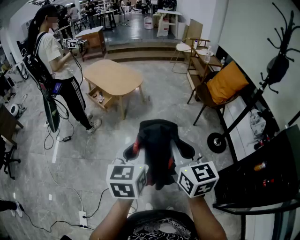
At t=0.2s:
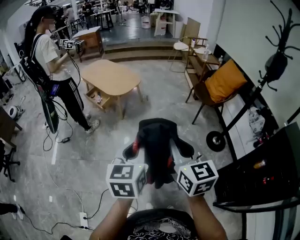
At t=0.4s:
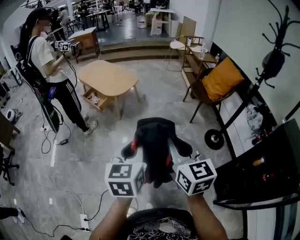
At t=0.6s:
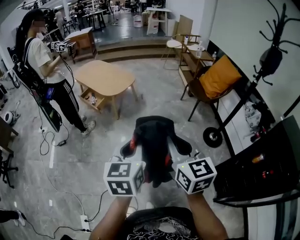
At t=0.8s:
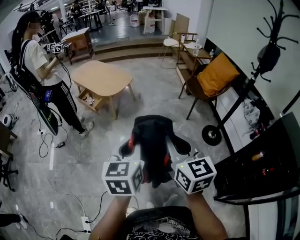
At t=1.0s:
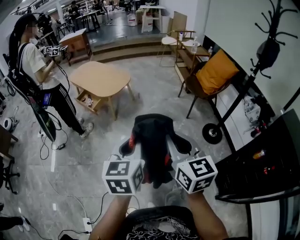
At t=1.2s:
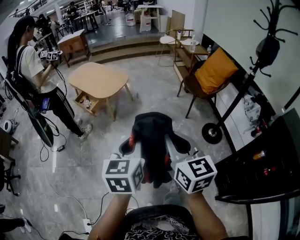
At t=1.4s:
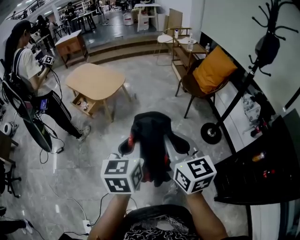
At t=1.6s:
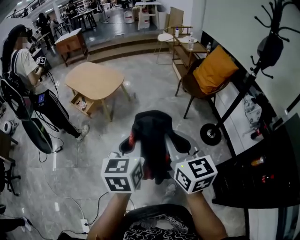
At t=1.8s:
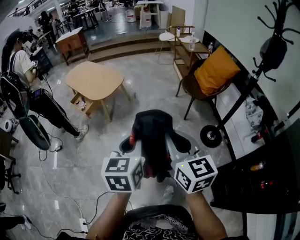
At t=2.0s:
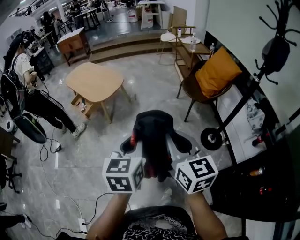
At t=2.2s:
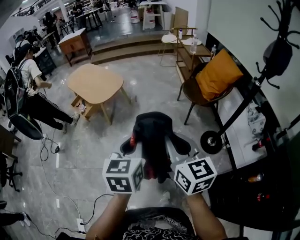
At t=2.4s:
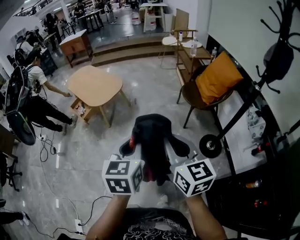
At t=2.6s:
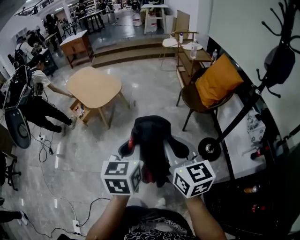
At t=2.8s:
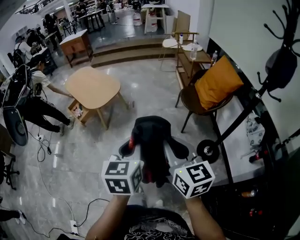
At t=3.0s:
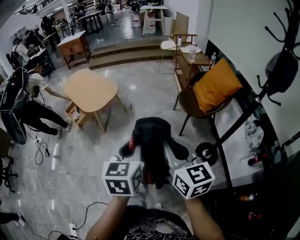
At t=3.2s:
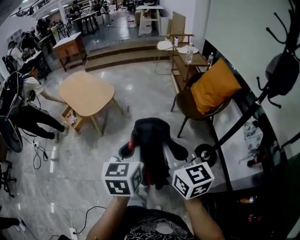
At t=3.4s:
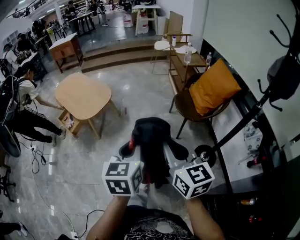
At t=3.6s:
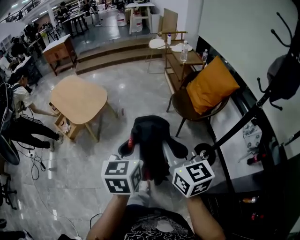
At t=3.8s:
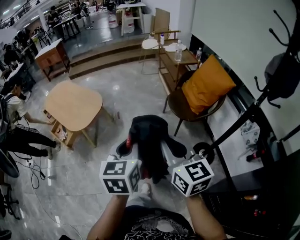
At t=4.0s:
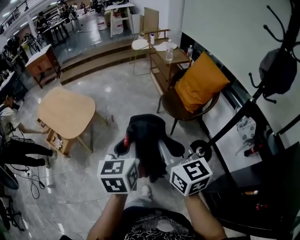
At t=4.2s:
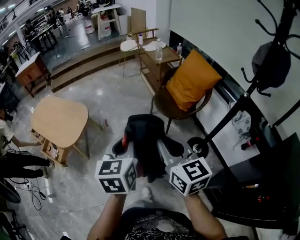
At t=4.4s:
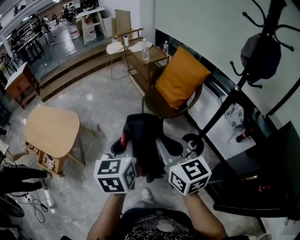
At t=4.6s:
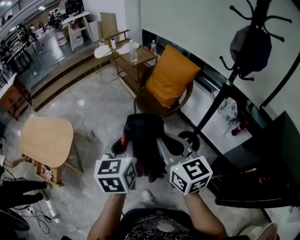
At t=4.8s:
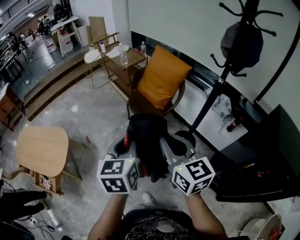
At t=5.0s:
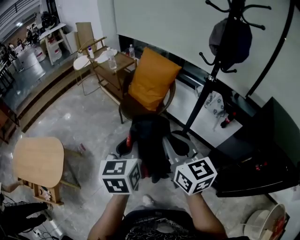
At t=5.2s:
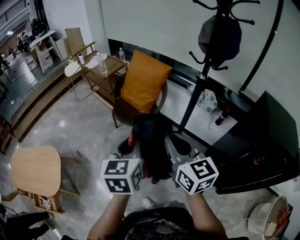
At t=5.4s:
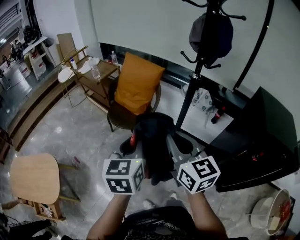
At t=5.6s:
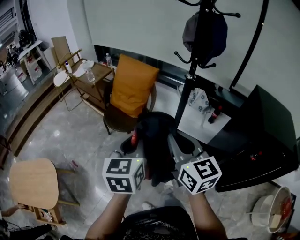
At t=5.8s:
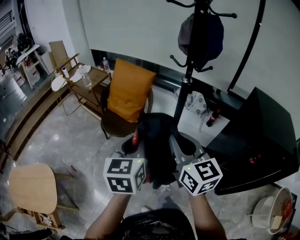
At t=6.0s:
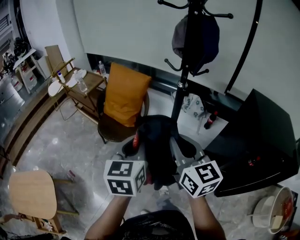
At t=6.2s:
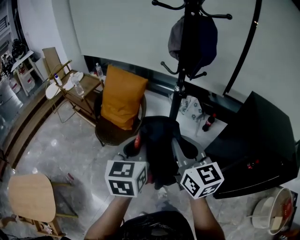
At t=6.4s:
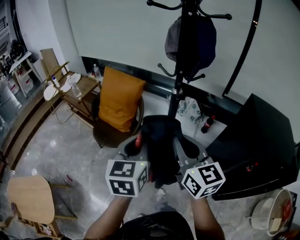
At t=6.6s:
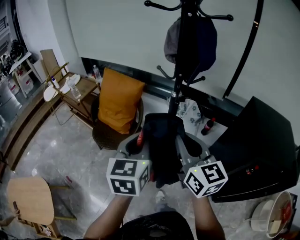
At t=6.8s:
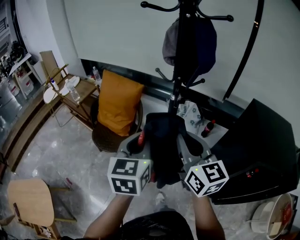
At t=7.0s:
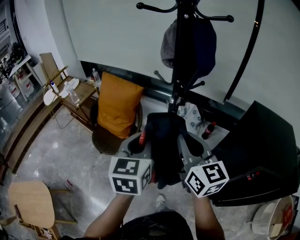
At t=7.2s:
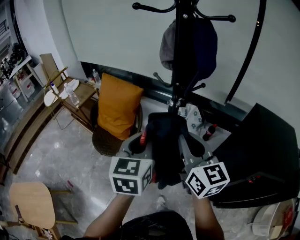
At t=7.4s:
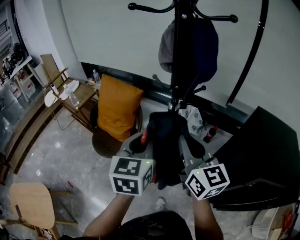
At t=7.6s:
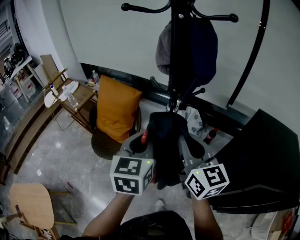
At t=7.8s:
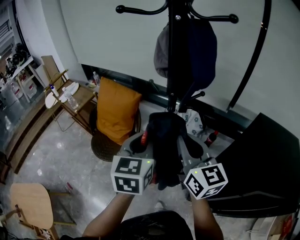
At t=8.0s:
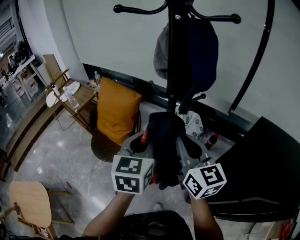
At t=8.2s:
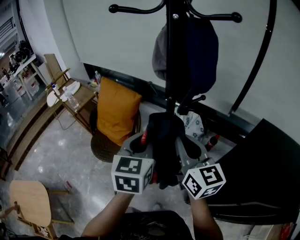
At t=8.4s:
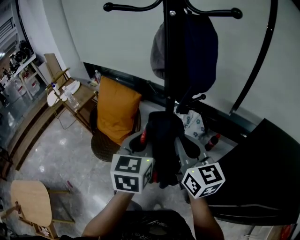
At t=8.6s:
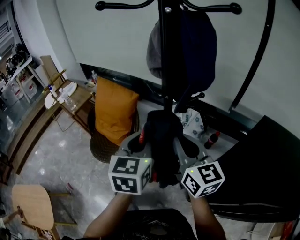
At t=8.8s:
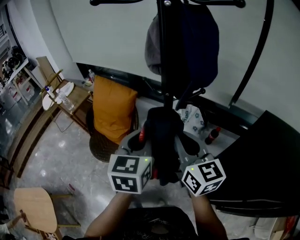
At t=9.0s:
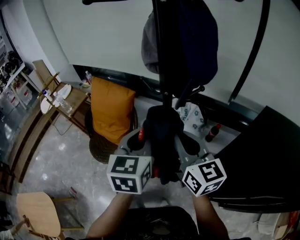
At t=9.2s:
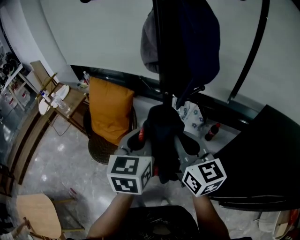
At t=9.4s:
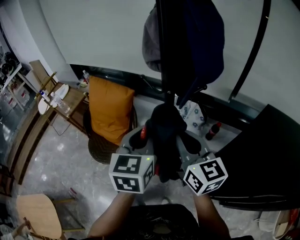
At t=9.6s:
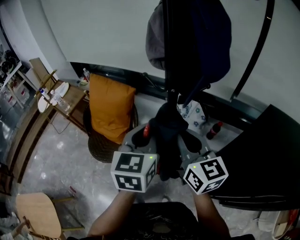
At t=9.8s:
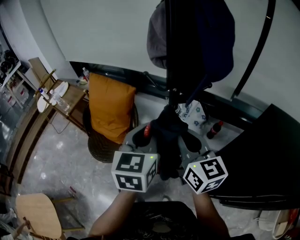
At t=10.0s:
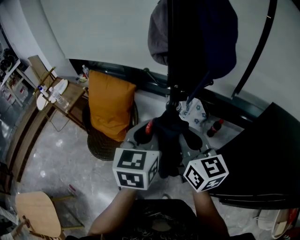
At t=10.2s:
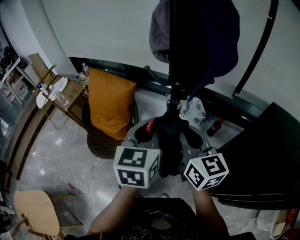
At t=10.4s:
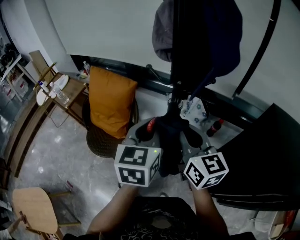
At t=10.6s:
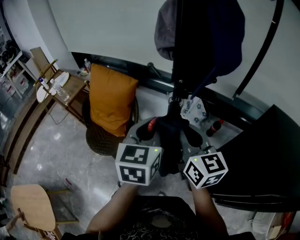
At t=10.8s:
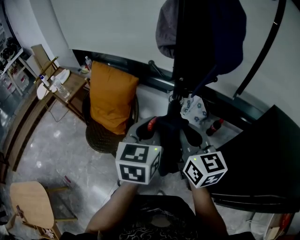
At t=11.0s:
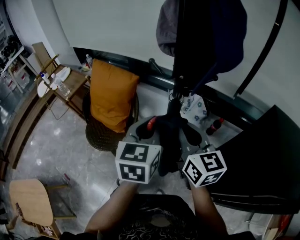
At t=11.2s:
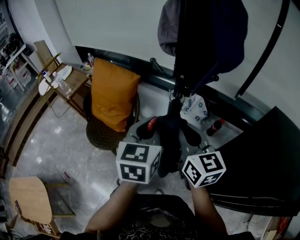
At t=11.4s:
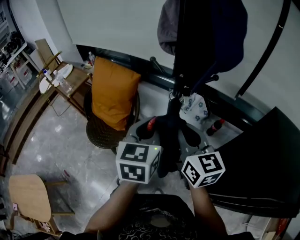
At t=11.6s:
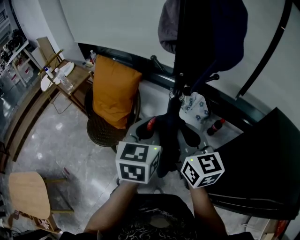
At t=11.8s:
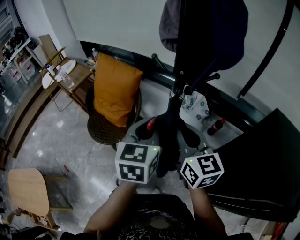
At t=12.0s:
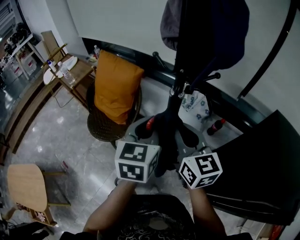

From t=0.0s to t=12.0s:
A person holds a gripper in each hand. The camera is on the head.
From t=0.0s to t=1.6s: The grippers both shift to the right and forward by some 15 cm.
From t=1.6s to t=3.0s: Both grippers travel together to the right and forward, roughly 20 cm.
From t=3.0s to t=4.4s: The grippers both shift forward by roughly 20 cm. The right gripper swivels roughly 20 degrees, while the left gripper swivels some 20 degrees.
From t=4.4s to t=6.0s: The right gripper moves some 25 cm, and rotates approximately 40 degrees, while the left gripper moves approximately 25 cm, and swivels approximately 40 degrees.
From t=6.0s to t=7.6s: Both grippers move forward and to the right, roughly 20 cm.
From t=7.6s to t=9.0s: Both grippers travel together forward, approximately 5 cm.
From t=9.0s to t=12.0s: The grippers make only small movements.

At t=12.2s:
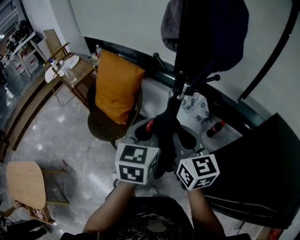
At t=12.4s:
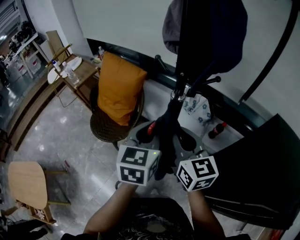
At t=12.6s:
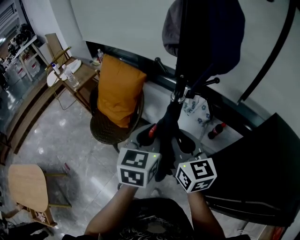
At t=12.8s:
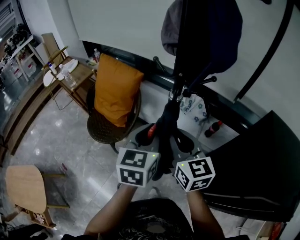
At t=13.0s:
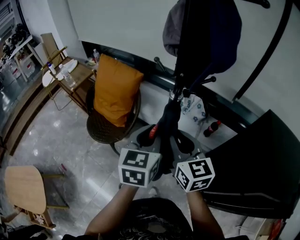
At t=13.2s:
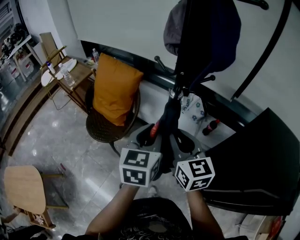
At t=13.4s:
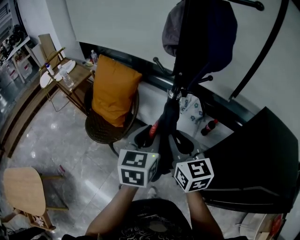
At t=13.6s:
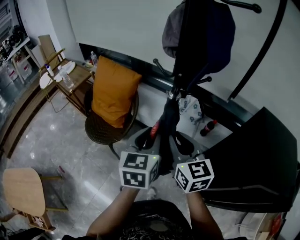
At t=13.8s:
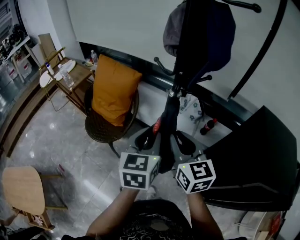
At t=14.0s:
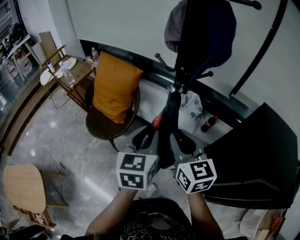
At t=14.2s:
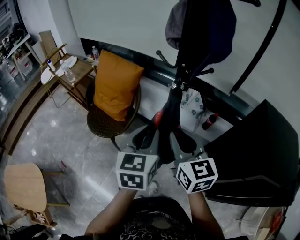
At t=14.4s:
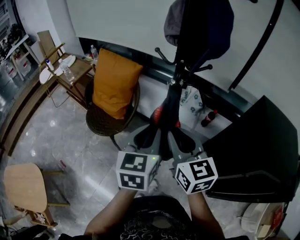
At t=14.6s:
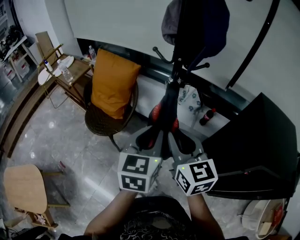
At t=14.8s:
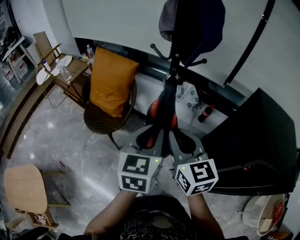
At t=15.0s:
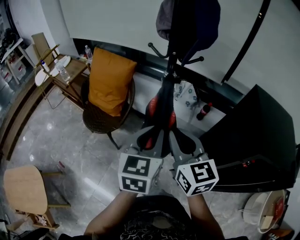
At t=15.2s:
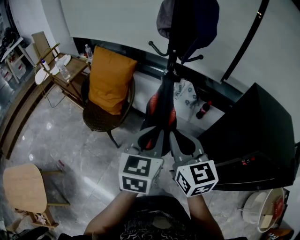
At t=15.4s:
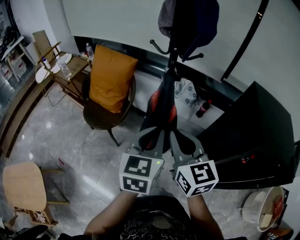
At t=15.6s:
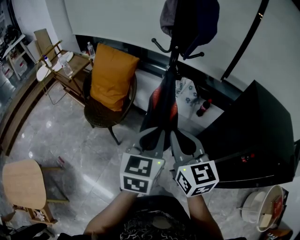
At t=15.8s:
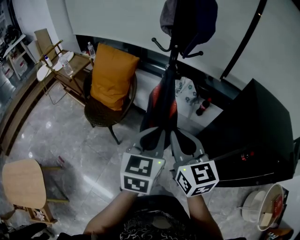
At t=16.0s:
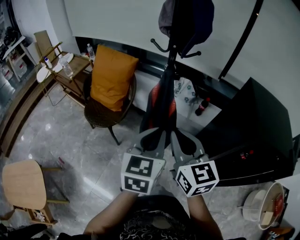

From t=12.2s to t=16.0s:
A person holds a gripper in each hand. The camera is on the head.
From t=12.2s to t=13.4s: The grippers move only a little.
From t=13.4s to t=14.8s: The grippers both shift backward by roughly 10 cm.
From t=14.8s to t=16.0s: Both grippers move backward, some 10 cm.

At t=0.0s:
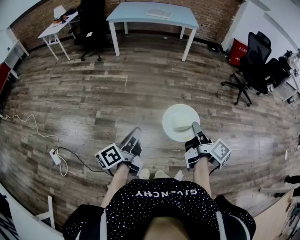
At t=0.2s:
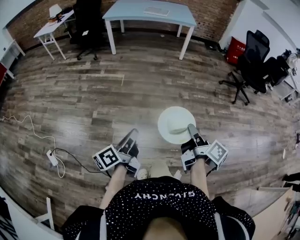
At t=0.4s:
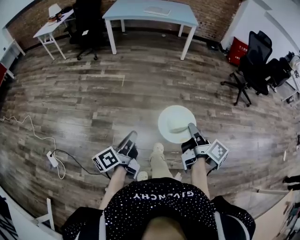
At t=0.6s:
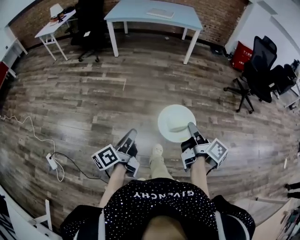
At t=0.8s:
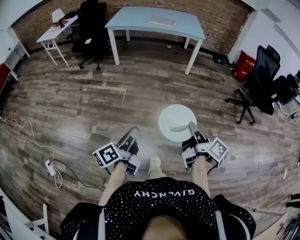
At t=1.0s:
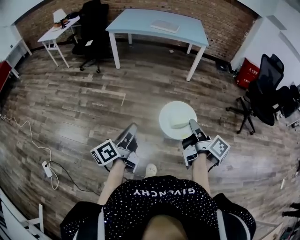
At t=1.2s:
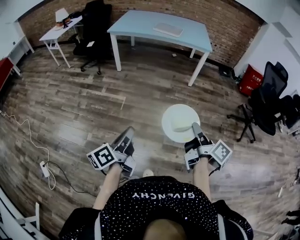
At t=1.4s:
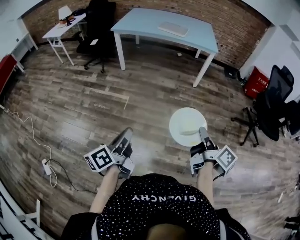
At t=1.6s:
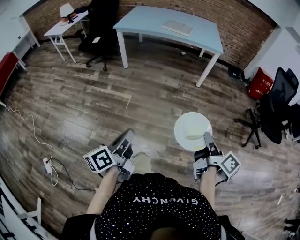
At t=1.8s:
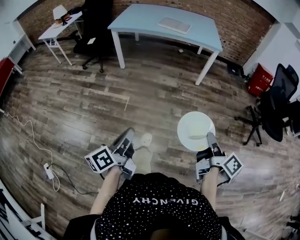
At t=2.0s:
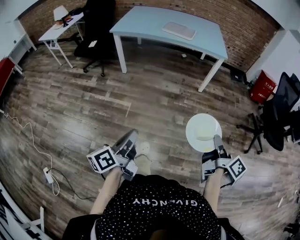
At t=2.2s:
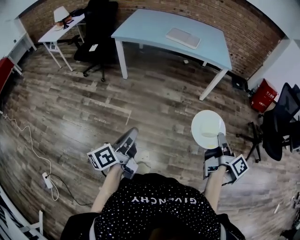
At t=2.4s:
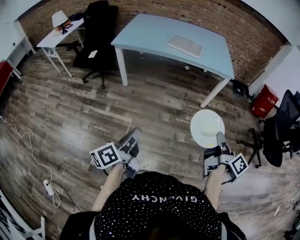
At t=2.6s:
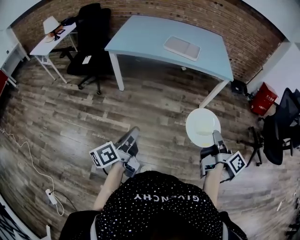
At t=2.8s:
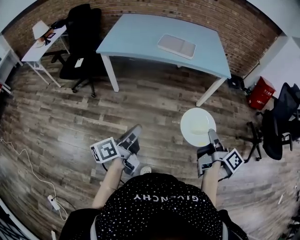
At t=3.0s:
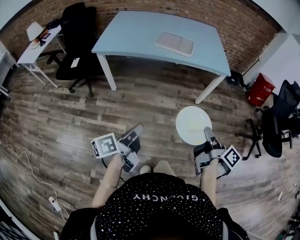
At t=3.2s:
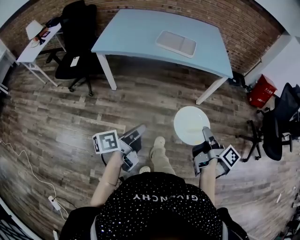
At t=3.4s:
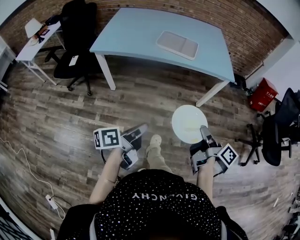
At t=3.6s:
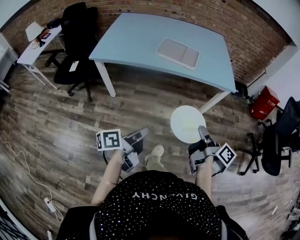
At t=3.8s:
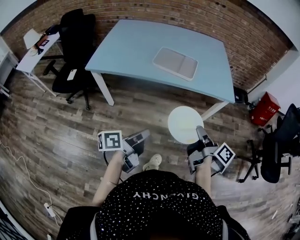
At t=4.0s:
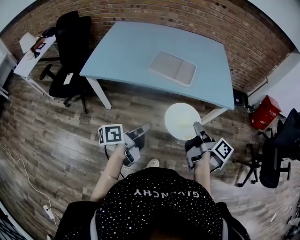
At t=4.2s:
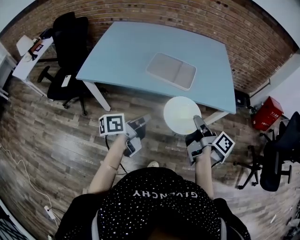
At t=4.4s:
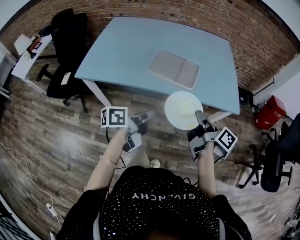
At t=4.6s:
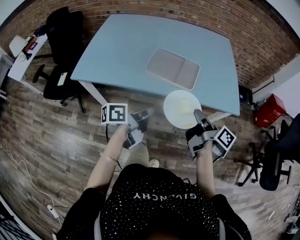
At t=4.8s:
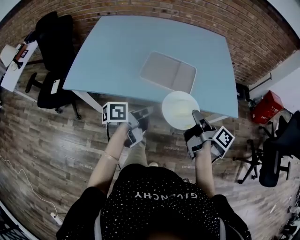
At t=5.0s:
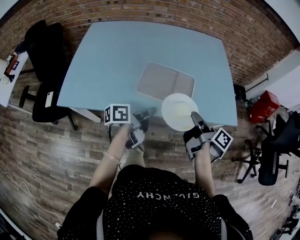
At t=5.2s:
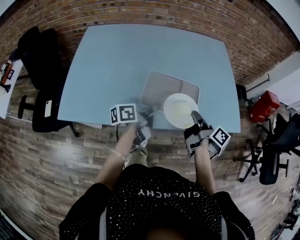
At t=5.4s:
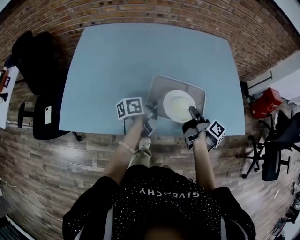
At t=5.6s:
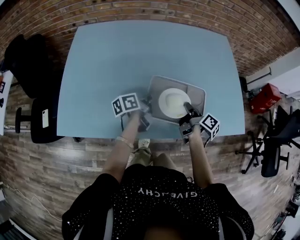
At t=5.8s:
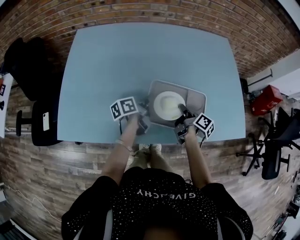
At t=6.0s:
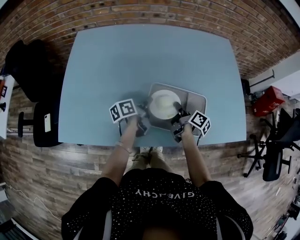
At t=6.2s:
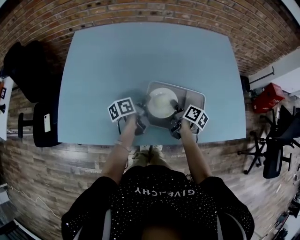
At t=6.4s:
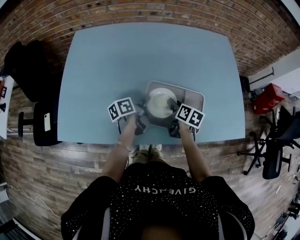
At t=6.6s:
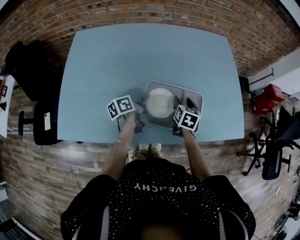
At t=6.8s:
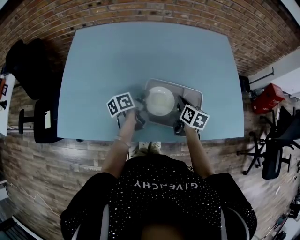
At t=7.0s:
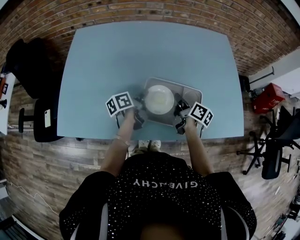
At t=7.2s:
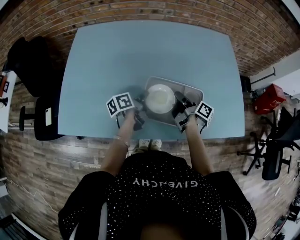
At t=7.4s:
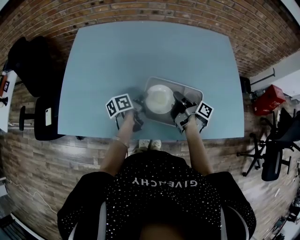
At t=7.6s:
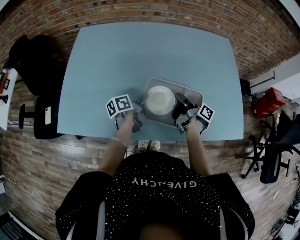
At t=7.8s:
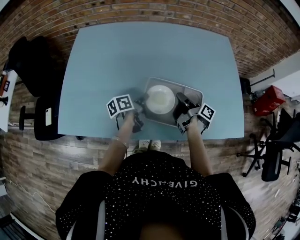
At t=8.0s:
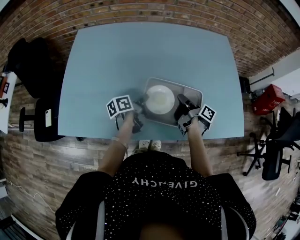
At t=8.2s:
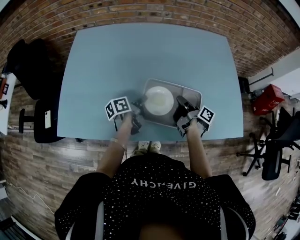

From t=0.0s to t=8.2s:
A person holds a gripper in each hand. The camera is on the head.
From t=0.0s to t=1.6s: The left gripper shifts by about 40 cm.
From t=1.6s to t=3.2s: The left gripper ends up approximately 50 cm from where it was, and rotates approximately 20 degrees.
From t=3.2s to t=5.0s: The left gripper shifts by about 60 cm.
From t=5.0s to t=6.6s: The left gripper ends up roughly 30 cm from where it was.
